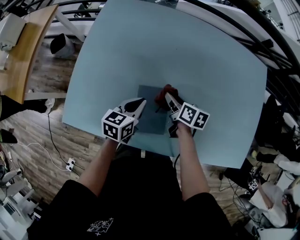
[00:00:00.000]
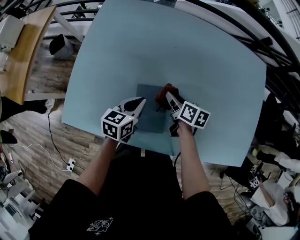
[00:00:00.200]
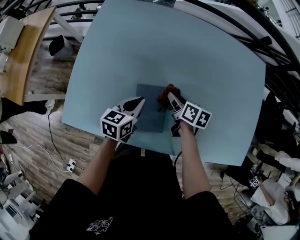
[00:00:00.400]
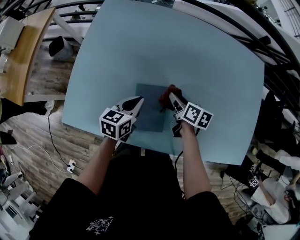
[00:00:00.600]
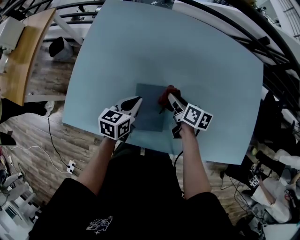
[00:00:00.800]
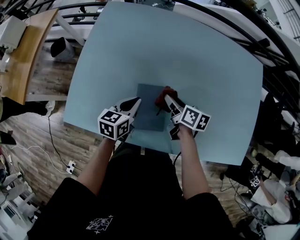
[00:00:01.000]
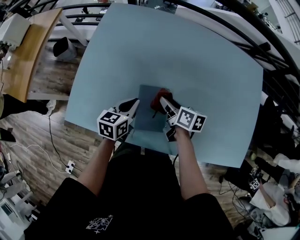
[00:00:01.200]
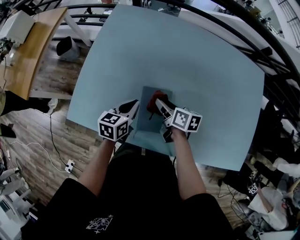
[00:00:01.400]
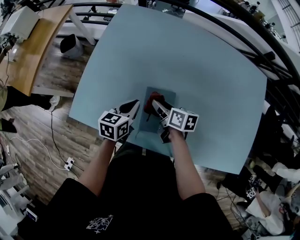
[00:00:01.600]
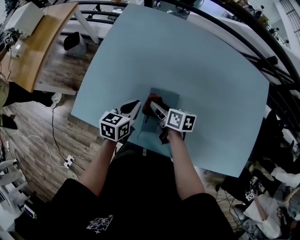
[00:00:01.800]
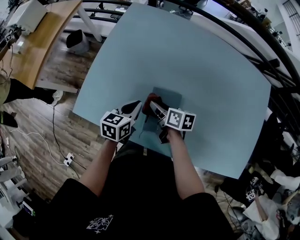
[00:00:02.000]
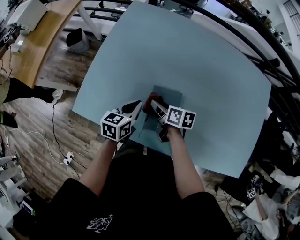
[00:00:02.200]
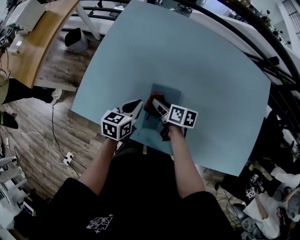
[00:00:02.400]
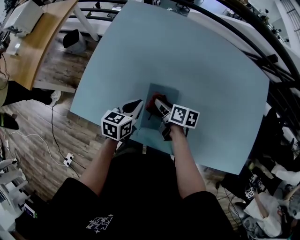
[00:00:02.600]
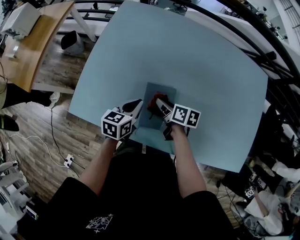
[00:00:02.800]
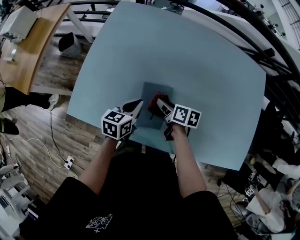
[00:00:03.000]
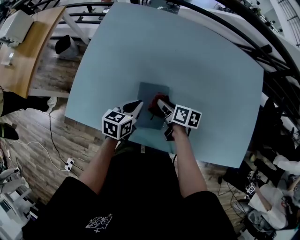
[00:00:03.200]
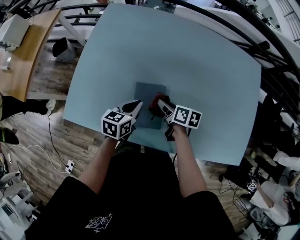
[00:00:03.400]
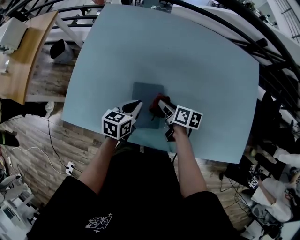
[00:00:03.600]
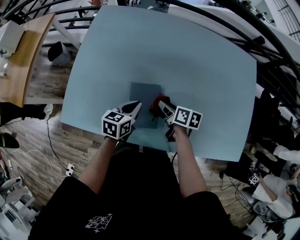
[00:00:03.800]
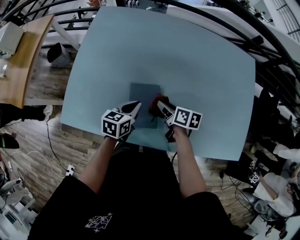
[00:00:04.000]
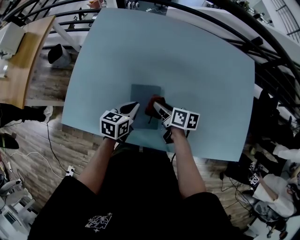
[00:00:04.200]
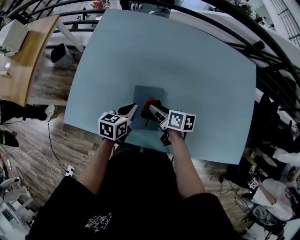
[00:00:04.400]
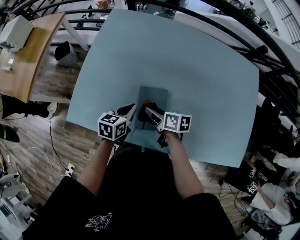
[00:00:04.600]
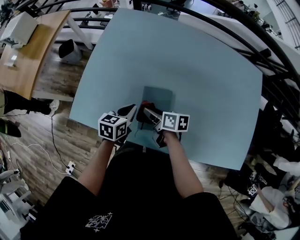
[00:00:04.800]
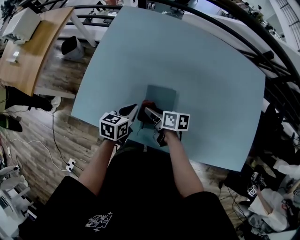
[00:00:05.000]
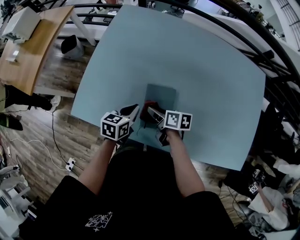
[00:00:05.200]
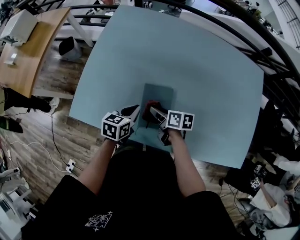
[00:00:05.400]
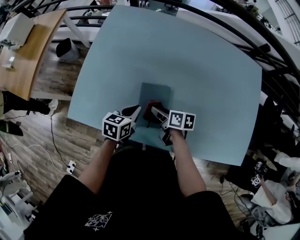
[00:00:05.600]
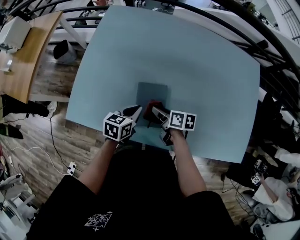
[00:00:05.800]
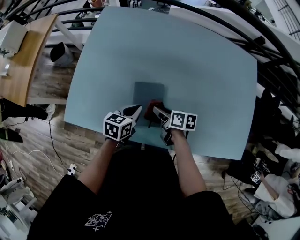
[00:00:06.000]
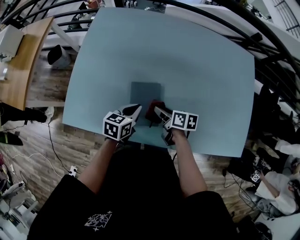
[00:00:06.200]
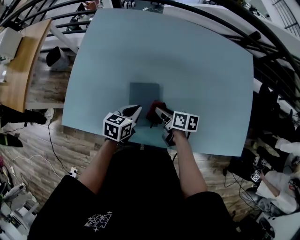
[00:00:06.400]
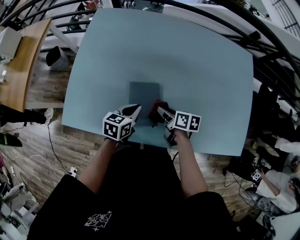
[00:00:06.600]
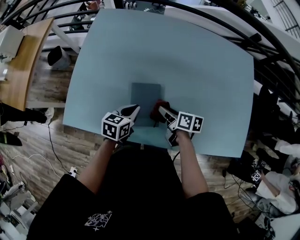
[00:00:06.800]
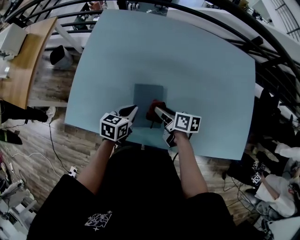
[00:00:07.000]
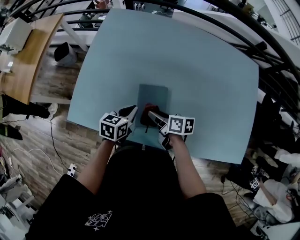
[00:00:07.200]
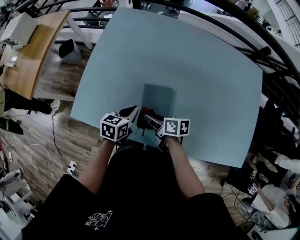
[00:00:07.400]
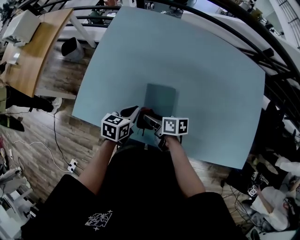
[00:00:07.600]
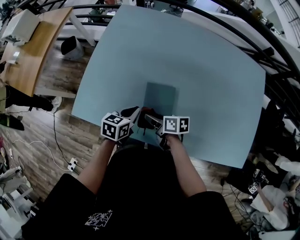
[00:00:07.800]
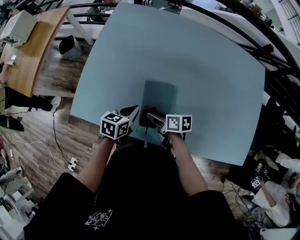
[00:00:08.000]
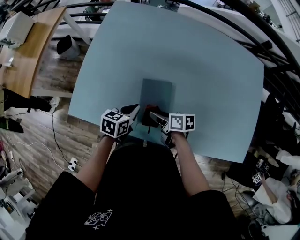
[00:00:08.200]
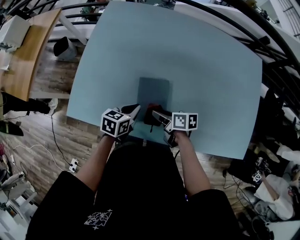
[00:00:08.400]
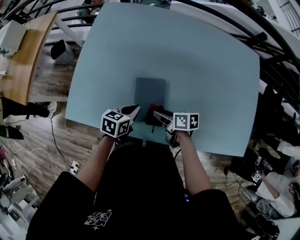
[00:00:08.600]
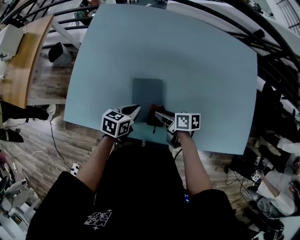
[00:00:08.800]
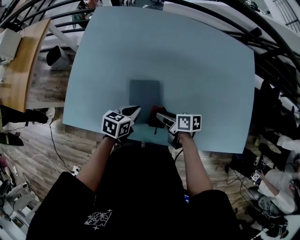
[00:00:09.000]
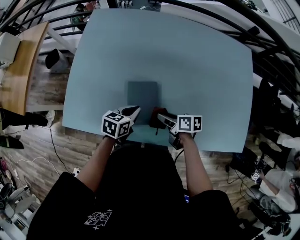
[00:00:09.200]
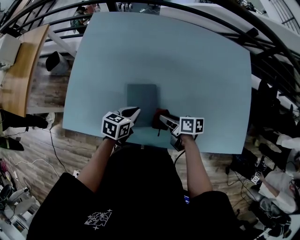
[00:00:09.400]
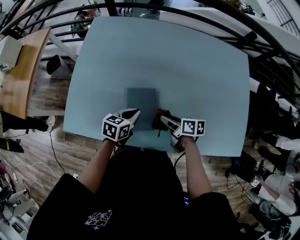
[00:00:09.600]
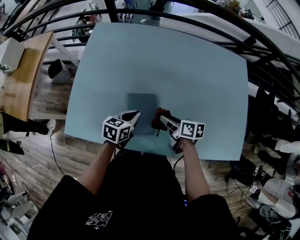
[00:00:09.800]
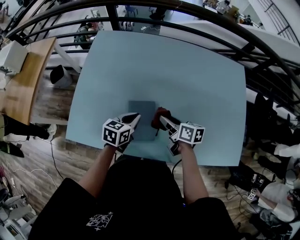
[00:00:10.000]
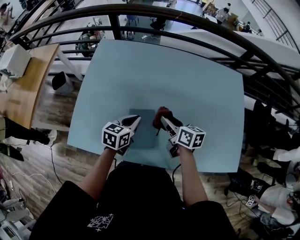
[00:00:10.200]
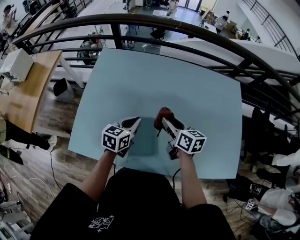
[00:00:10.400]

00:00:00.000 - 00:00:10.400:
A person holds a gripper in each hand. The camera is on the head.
00:00:00.000 - 00:00:01.400: The right gripper goes some 5 cm to the left.
00:00:01.400 - 00:00:03.000: The right gripper moves approximately 5 cm to the left and comes back.
00:00:04.400 - 00:00:06.000: The right gripper moves some 10 cm to the left and comes back.
00:00:06.000 - 00:00:07.400: The right gripper shifts roughly 10 cm to the left, while the left gripper heads to the left, covering roughly 5 cm.
00:00:07.400 - 00:00:09.000: The left gripper travels to the right by some 5 cm; the right gripper shifts approximately 10 cm to the right.
00:00:09.000 - 00:00:10.400: The grippers both shift upward and forward by about 20 cm. The right gripper swivels approximately 40 degrees.

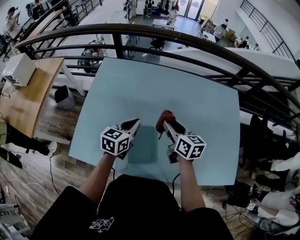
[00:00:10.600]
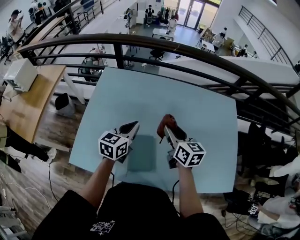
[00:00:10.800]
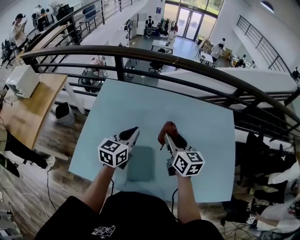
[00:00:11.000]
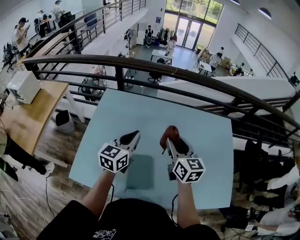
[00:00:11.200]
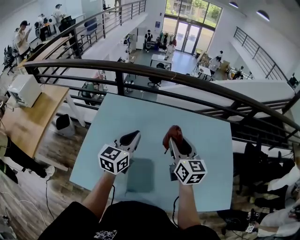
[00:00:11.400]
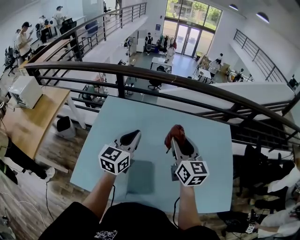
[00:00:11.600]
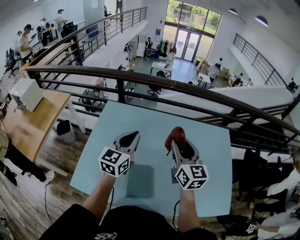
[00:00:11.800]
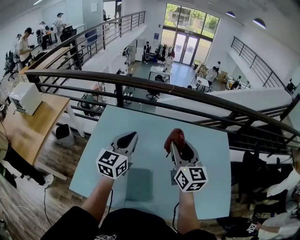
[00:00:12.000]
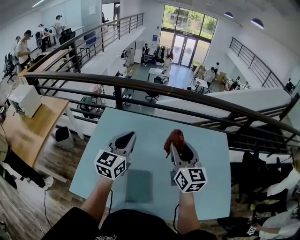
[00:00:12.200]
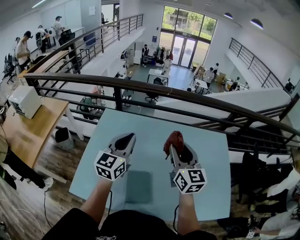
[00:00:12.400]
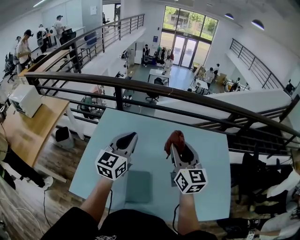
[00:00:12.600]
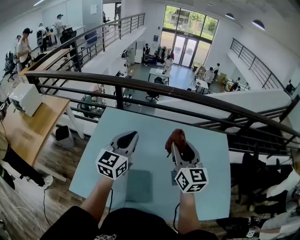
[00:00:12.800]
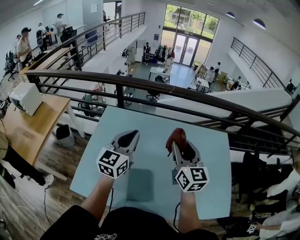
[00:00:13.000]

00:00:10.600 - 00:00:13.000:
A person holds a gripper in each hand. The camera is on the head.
00:00:10.600 - 00:00:11.800: Both grippers travel together upward, approximately 20 cm. The left gripper changes its angle by roughly 30 degrees, while the right gripper swivels about 30 degrees.
00:00:11.800 - 00:00:13.000: The grippers make only small movements.

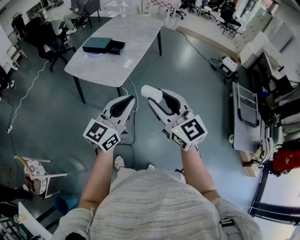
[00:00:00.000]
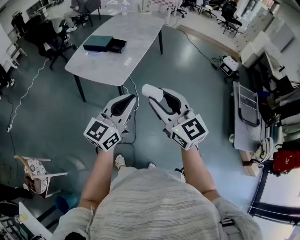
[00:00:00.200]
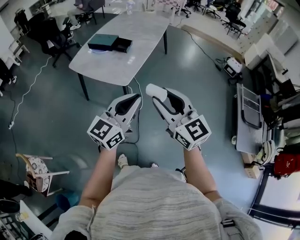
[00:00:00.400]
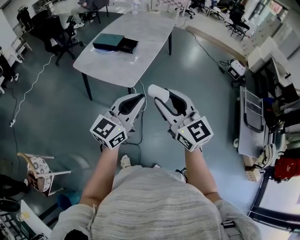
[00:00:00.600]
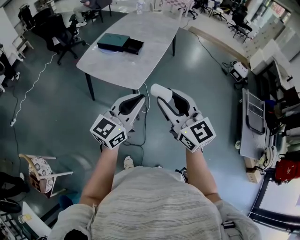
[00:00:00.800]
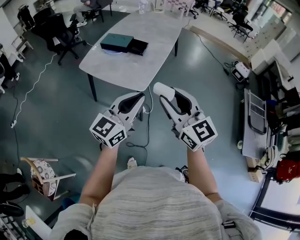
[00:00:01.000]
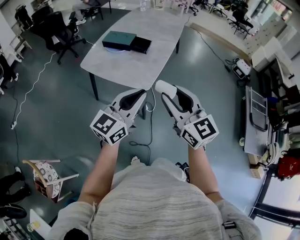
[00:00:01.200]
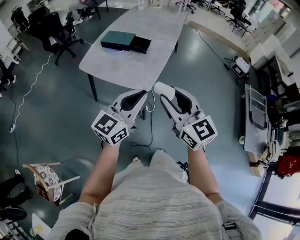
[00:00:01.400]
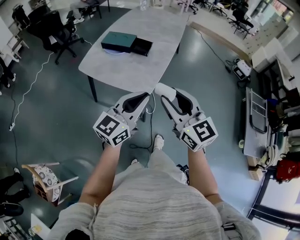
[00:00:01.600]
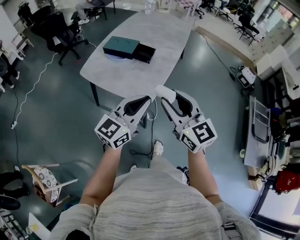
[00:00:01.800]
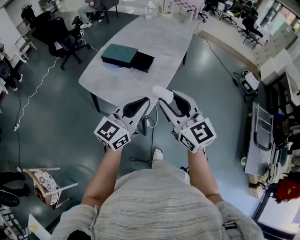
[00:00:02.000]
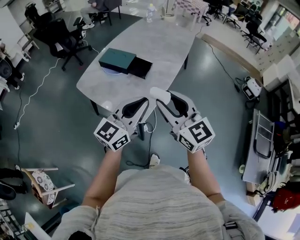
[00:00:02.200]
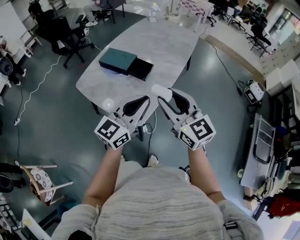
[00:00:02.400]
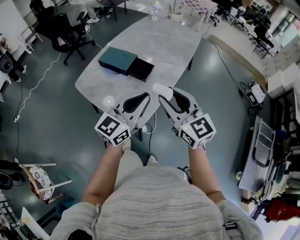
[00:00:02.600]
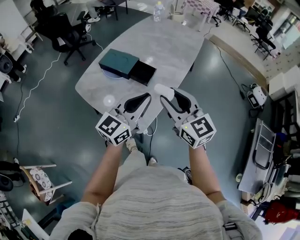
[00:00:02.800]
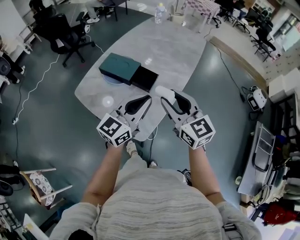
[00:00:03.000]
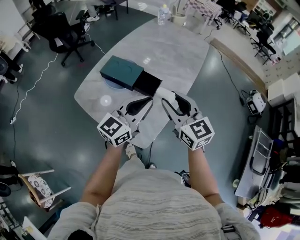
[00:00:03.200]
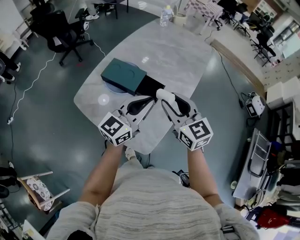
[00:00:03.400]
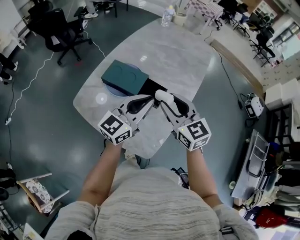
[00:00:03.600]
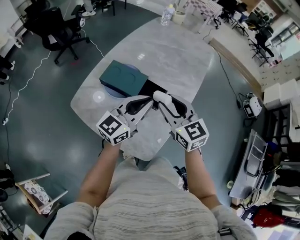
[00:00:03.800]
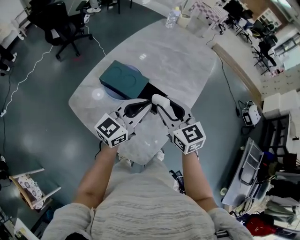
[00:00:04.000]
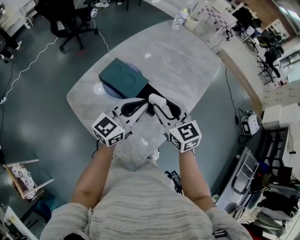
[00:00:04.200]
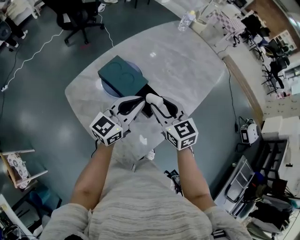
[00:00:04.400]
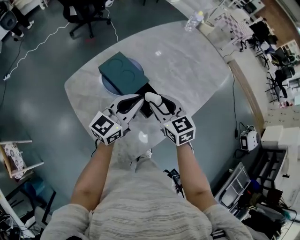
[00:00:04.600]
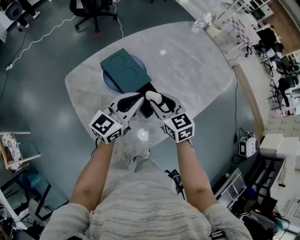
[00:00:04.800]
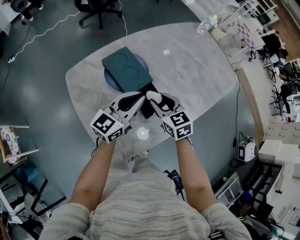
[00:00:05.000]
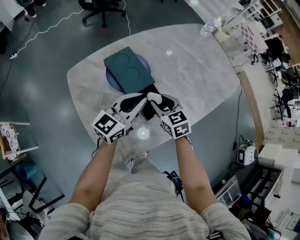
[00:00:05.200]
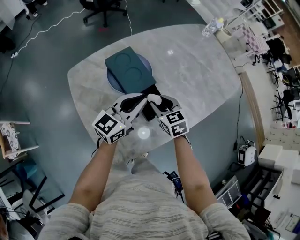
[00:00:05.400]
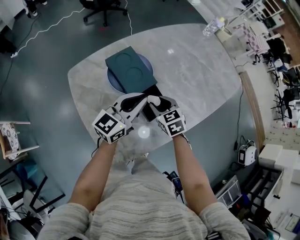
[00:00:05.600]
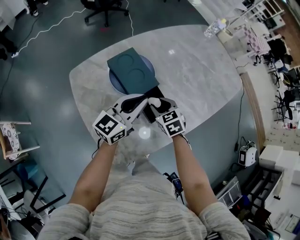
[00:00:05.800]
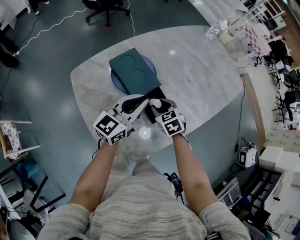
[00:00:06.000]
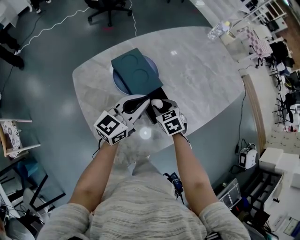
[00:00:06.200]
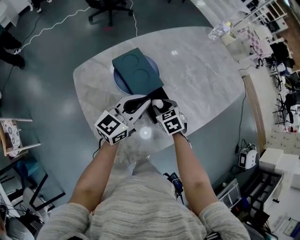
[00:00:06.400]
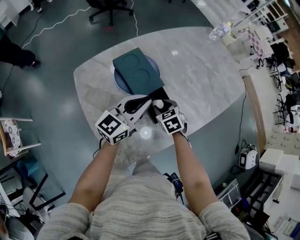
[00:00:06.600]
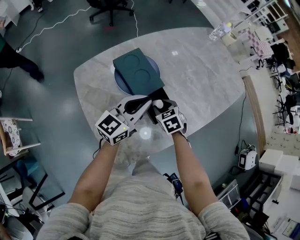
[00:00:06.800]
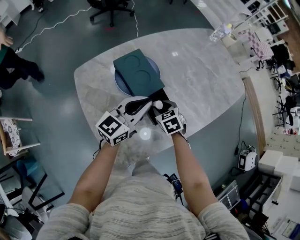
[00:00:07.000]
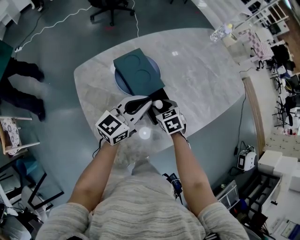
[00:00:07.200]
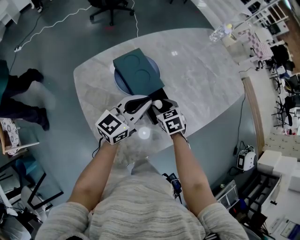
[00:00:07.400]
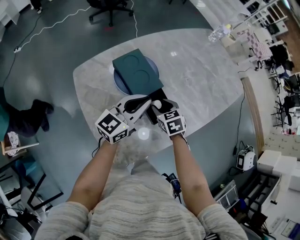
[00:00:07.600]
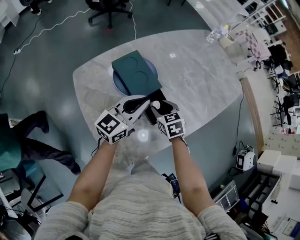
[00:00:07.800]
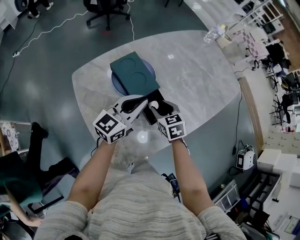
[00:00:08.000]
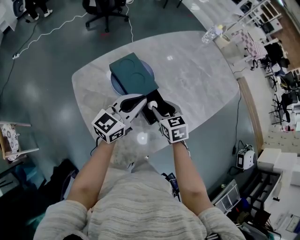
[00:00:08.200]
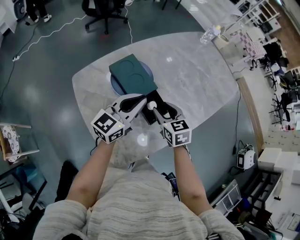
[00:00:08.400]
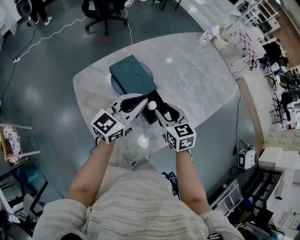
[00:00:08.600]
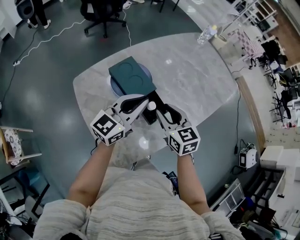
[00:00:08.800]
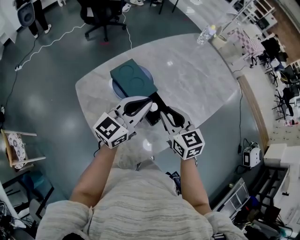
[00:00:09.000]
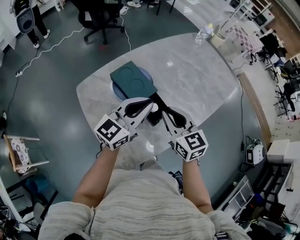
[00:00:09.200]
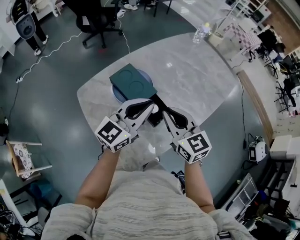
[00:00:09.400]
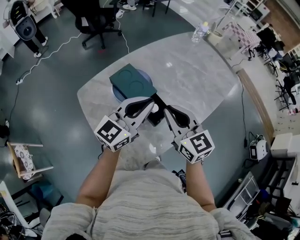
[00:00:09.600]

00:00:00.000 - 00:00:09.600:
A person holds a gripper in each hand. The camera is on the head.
00:00:00.000 - 00:00:01.600: The grippers both shift to the left and forward by roughly 20 cm.
00:00:01.600 - 00:00:03.200: Both grippers travel together forward, approximately 35 cm.
00:00:03.200 - 00:00:04.800: Both grippers move forward and downward, roughly 20 cm. The left gripper changes its angle by roughly 20 degrees; the right gripper changes its angle by approximately 30 degrees.
00:00:04.800 - 00:00:06.400: The right gripper travels downward by roughly 15 cm, and swivels roughly 30 degrees.
00:00:06.400 - 00:00:08.000: The right gripper heads upward, covering about 5 cm.
00:00:08.000 - 00:00:09.600: The left gripper moves upward, approximately 10 cm, while the right gripper moves upward, about 20 cm, tilts its fingers roughly 30 degrees upward, and closes its fingers.

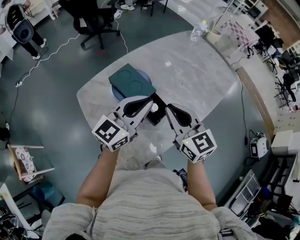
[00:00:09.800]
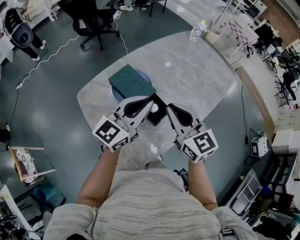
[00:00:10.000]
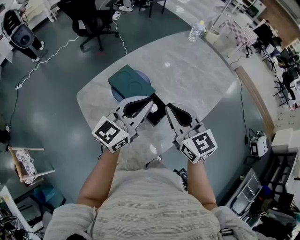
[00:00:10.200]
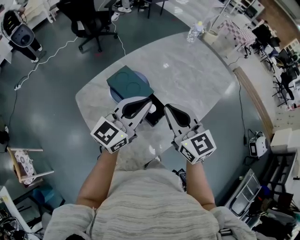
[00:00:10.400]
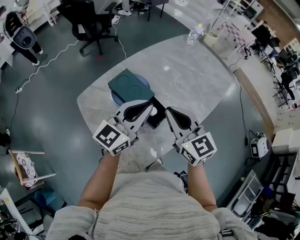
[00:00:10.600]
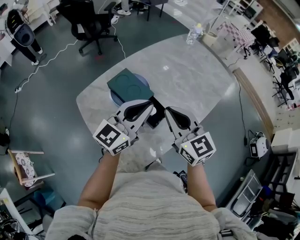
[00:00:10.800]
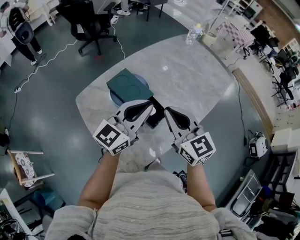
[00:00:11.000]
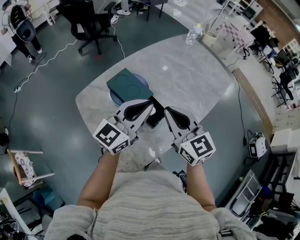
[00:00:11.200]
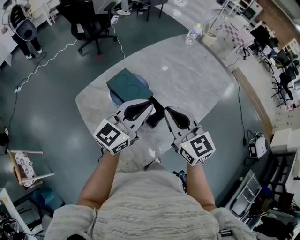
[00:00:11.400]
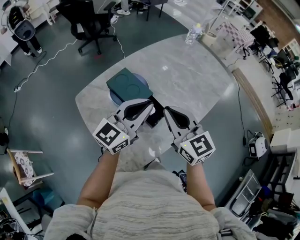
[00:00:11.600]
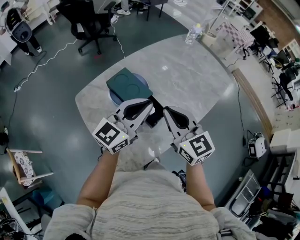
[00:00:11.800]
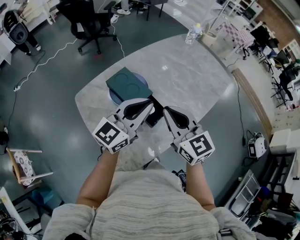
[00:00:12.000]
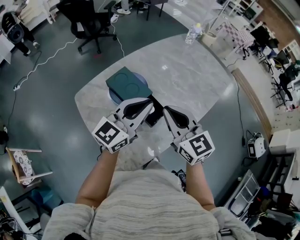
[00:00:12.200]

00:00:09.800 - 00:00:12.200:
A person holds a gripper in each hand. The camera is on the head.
00:00:09.800 - 00:00:11.000: The grippers move only a little.
00:00:11.000 - 00:00:12.200: The two grippers keep their place.
